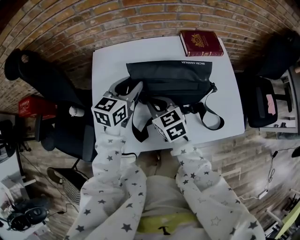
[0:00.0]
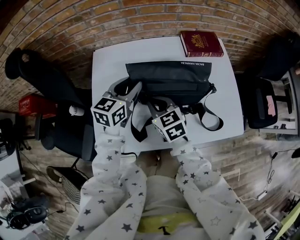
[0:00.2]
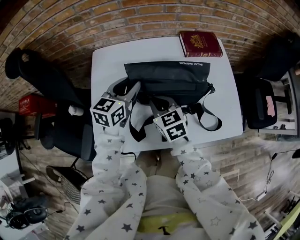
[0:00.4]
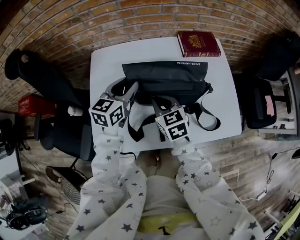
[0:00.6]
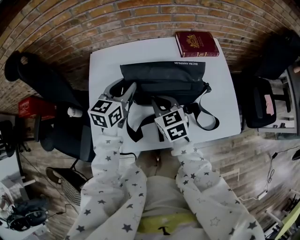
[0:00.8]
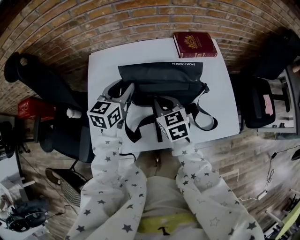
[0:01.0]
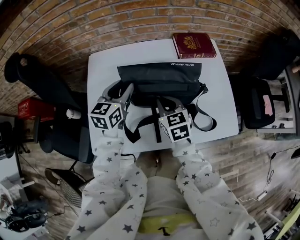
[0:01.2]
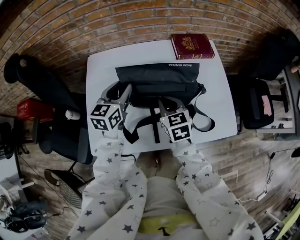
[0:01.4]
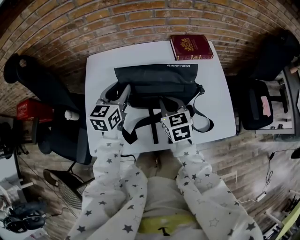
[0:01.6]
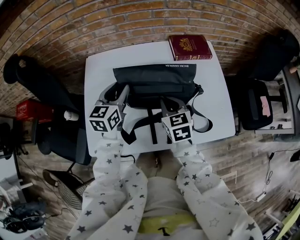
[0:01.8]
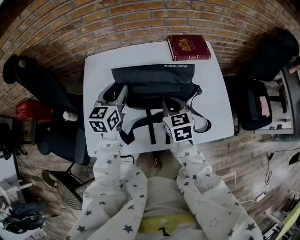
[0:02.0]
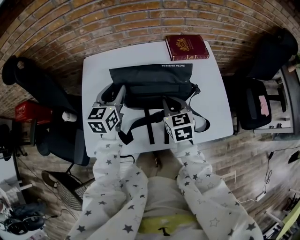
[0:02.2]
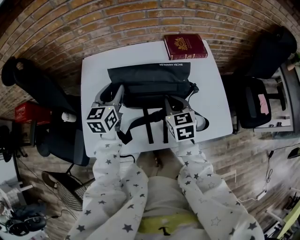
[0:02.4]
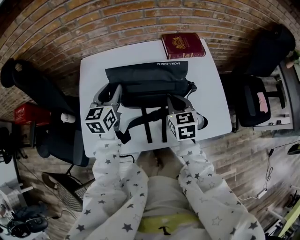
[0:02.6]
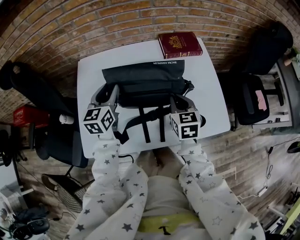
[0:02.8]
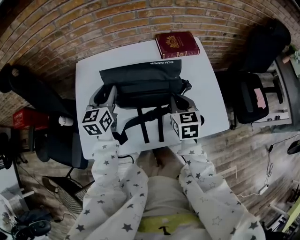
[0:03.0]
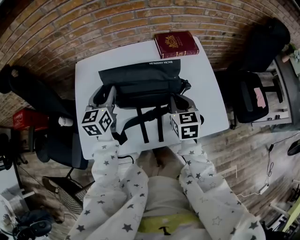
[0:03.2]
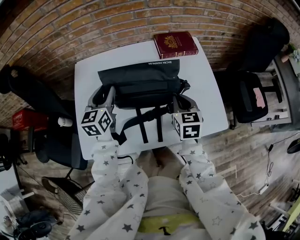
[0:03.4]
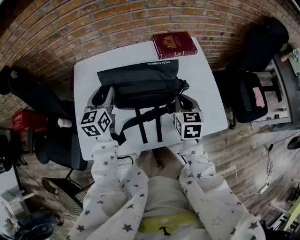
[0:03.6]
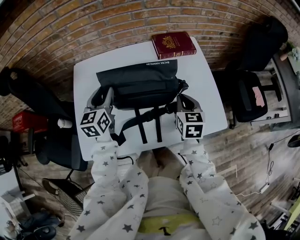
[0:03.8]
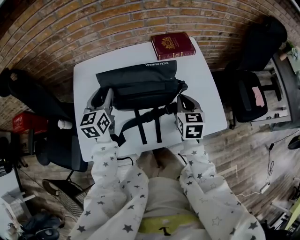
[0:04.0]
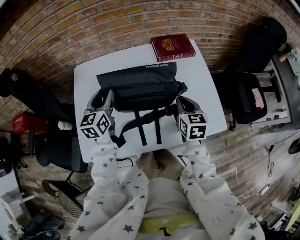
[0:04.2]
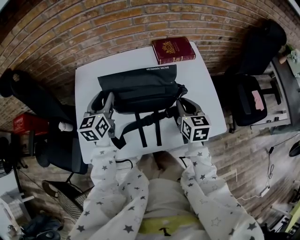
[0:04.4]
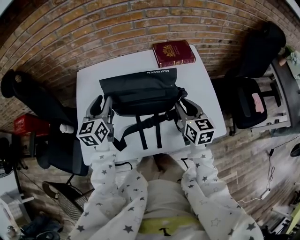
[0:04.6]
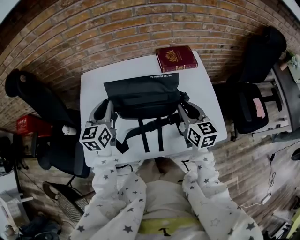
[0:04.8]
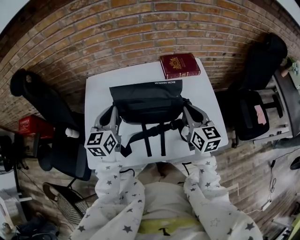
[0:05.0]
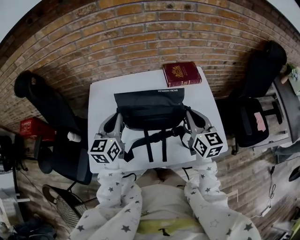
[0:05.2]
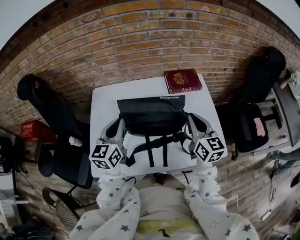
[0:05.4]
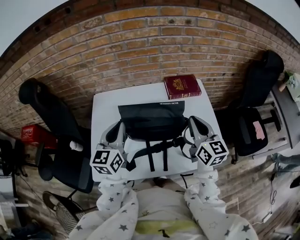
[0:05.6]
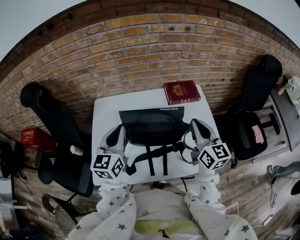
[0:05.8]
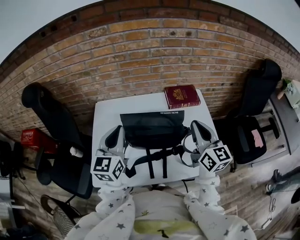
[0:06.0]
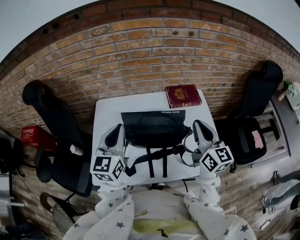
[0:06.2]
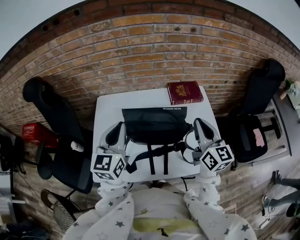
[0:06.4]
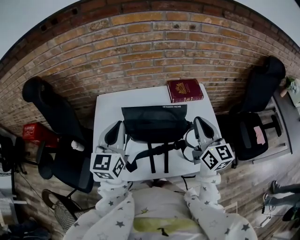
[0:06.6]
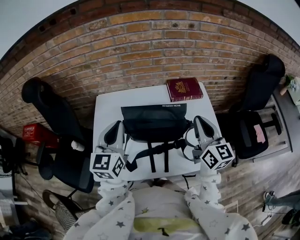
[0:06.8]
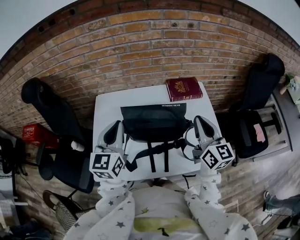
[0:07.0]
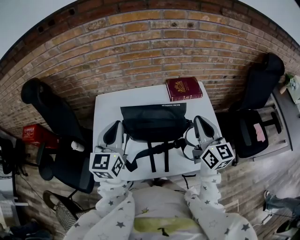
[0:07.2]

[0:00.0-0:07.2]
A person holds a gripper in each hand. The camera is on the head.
0:00.0 to 0:01.4: The right gripper goes some 10 cm to the right.
0:01.4 to 0:02.8: The right gripper heads to the right, covering some 10 cm.
0:02.8 to 0:04.4: The right gripper heads to the right, covering approximately 5 cm.
0:04.4 to 0:05.8: The left gripper goes roughly 15 cm upward and backward, and closes. Meanwhile the right gripper heads upward, covering some 15 cm, and turns by about 30 degrees.
0:05.8 to 0:07.2: The grippers move only a little.

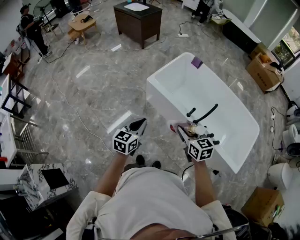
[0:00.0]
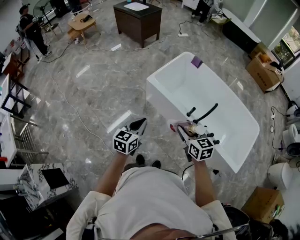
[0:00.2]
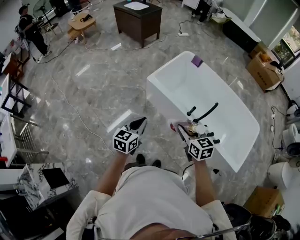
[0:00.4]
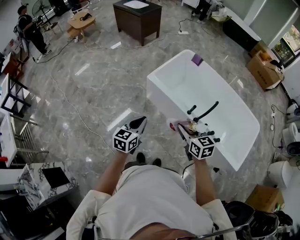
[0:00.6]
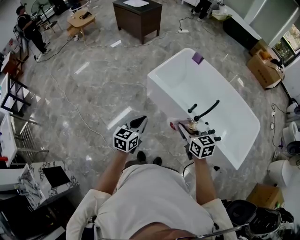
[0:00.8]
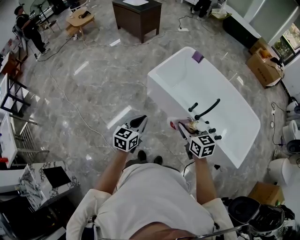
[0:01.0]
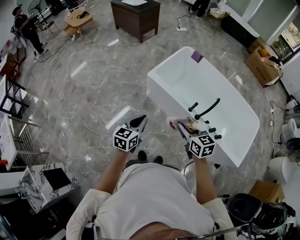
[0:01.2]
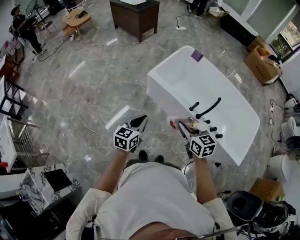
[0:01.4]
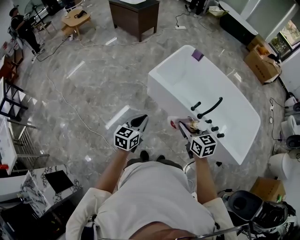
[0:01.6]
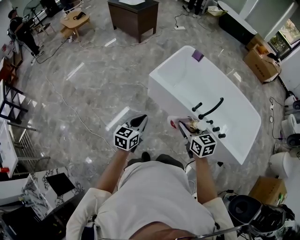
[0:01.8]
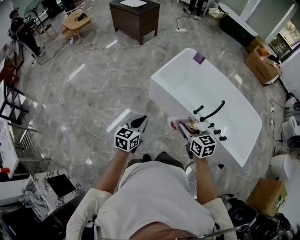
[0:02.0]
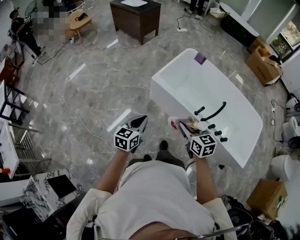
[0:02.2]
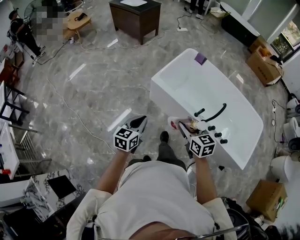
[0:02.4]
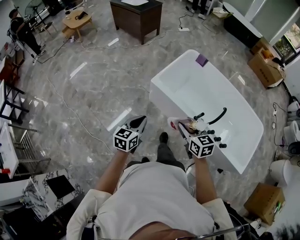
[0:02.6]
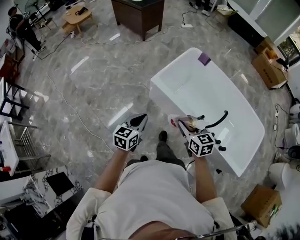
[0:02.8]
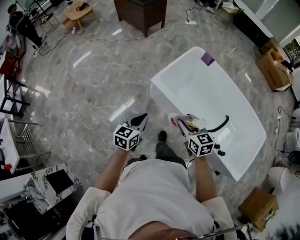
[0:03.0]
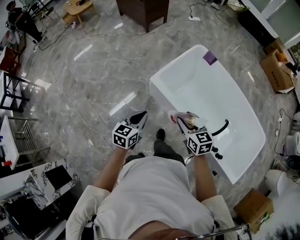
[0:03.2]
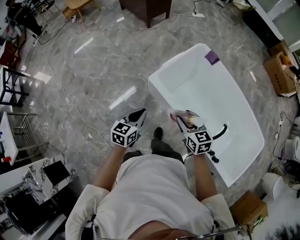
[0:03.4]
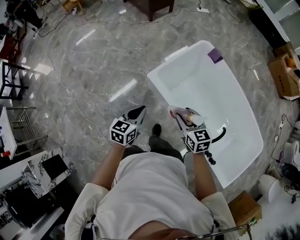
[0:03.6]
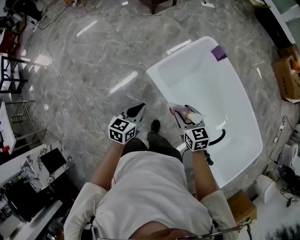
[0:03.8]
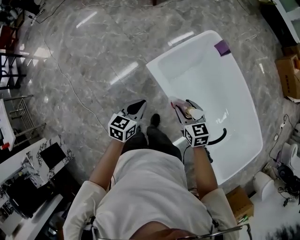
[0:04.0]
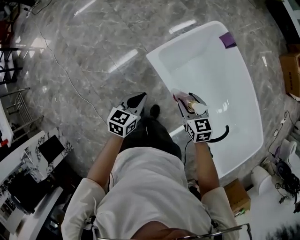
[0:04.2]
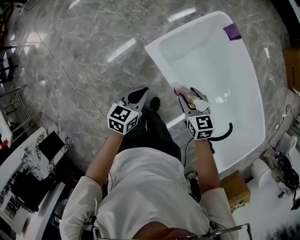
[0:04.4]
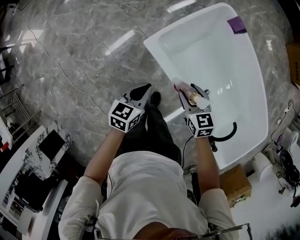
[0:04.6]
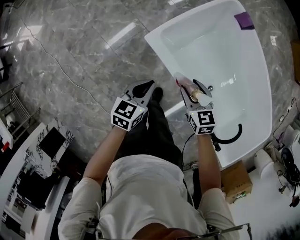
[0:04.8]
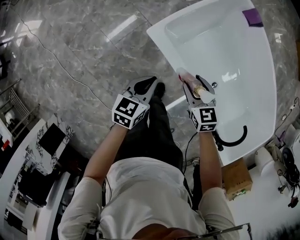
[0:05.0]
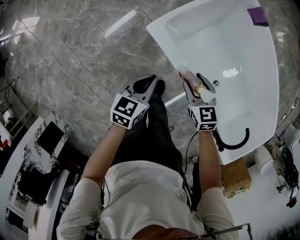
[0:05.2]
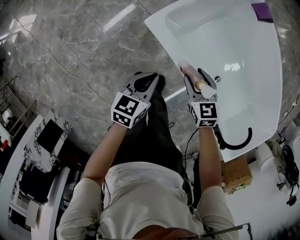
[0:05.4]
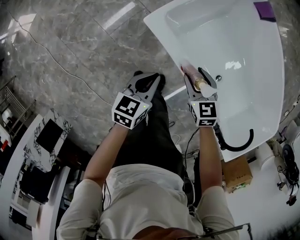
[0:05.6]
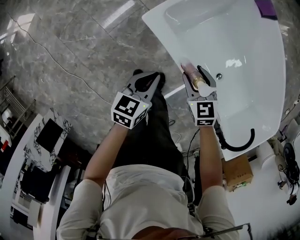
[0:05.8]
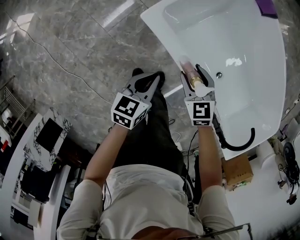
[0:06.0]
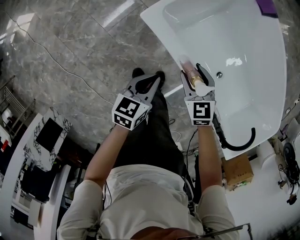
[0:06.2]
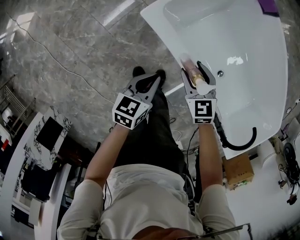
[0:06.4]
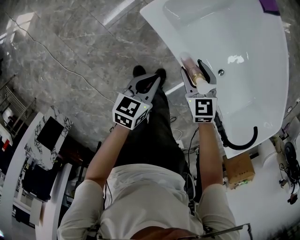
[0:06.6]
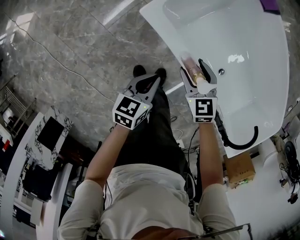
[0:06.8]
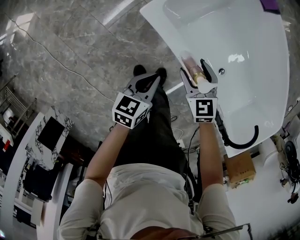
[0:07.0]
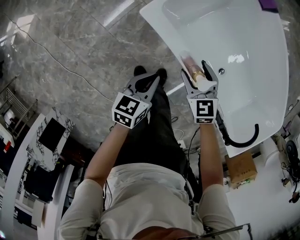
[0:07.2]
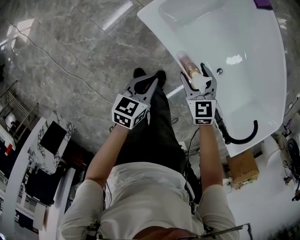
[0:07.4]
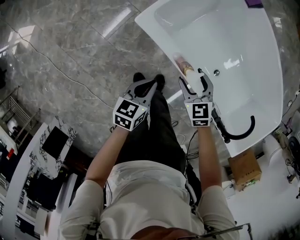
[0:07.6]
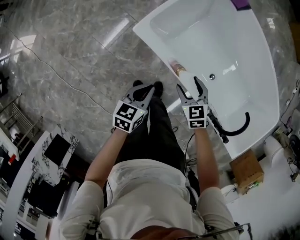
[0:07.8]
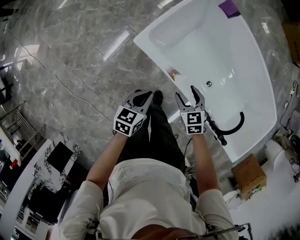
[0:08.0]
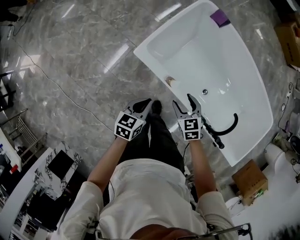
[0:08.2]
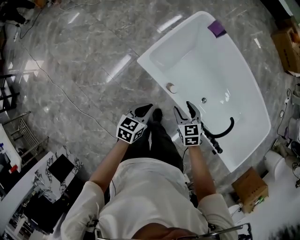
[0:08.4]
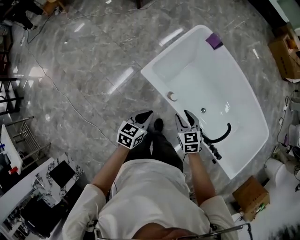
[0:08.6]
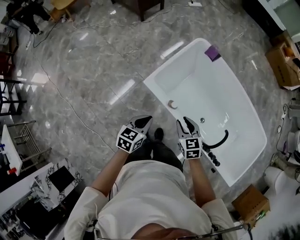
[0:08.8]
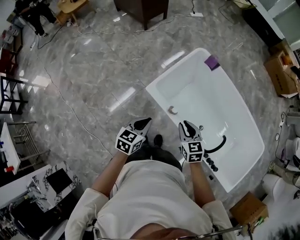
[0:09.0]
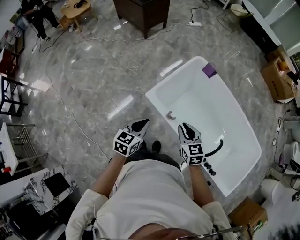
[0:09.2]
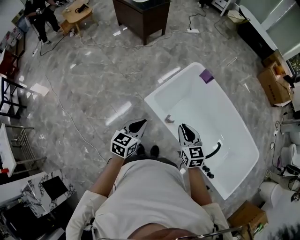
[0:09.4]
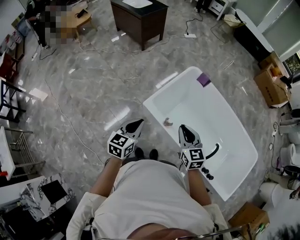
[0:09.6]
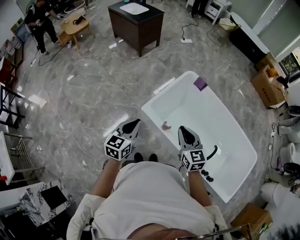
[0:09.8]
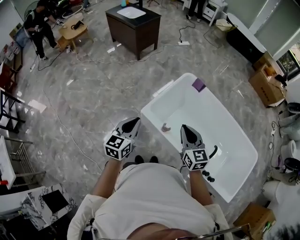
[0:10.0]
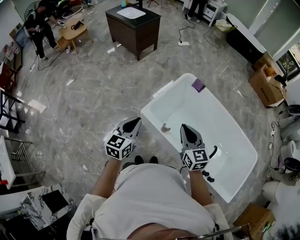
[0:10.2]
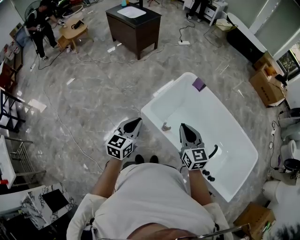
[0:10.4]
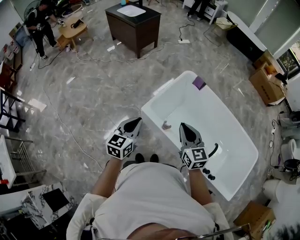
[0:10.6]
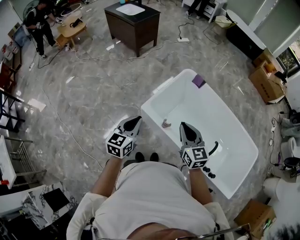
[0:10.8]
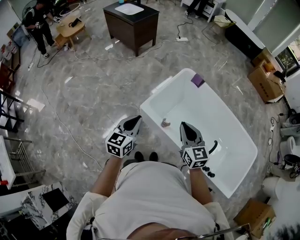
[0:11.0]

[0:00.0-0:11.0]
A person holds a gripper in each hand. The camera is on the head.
0:00.0 to 0:01.6: The two grippers go approximately 5 cm to the left.
0:01.6 to 0:03.2: Both grippers travel together forward, some 25 cm.
0:03.2 to 0:04.8: The grippers both shift downward and forward by roughly 35 cm.
0:04.8 to 0:06.2: Both grippers travel together downward, some 15 cm.
0:06.2 to 0:07.8: The right gripper moves backward, upward and to the right, roughly 10 cm, while the left gripper is displaced upward by roughly 5 cm.
0:07.8 to 0:09.4: The grippers both shift upward by some 40 cm. The right gripper turns by some 30 degrees, and closes, while the left gripper turns by approximately 20 degrees.
0:09.4 to 0:11.0: The two grippers go roughly 5 cm upward.

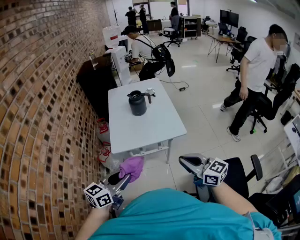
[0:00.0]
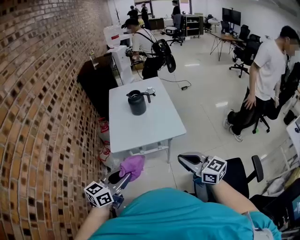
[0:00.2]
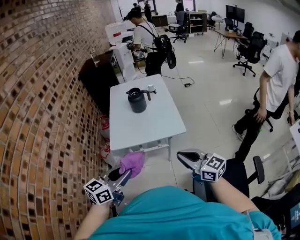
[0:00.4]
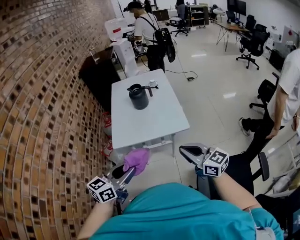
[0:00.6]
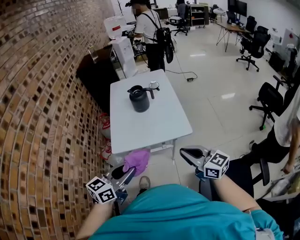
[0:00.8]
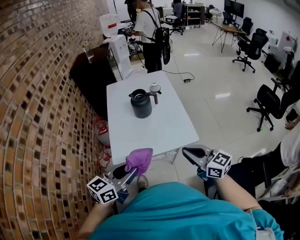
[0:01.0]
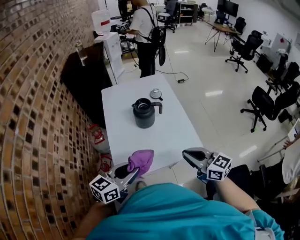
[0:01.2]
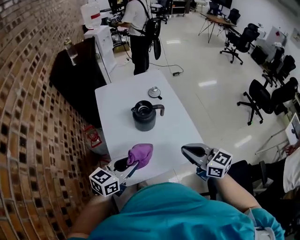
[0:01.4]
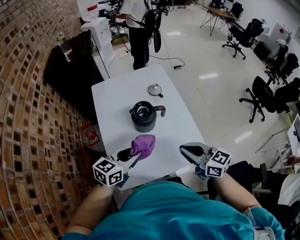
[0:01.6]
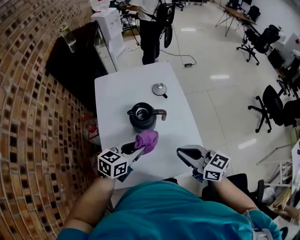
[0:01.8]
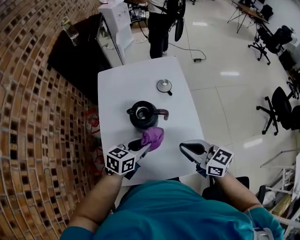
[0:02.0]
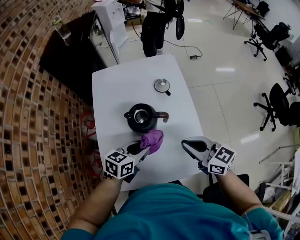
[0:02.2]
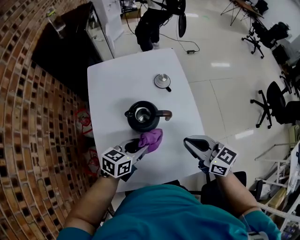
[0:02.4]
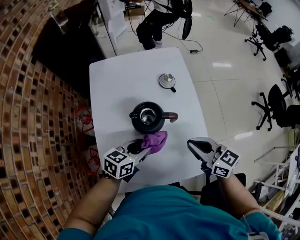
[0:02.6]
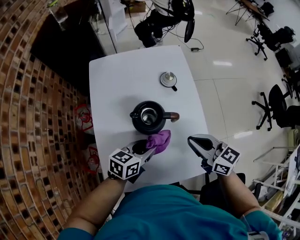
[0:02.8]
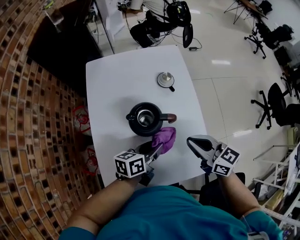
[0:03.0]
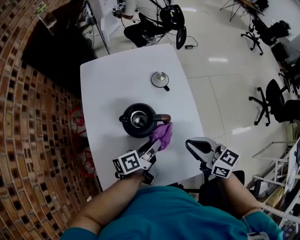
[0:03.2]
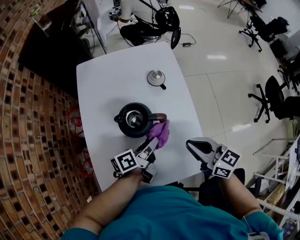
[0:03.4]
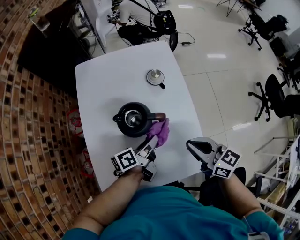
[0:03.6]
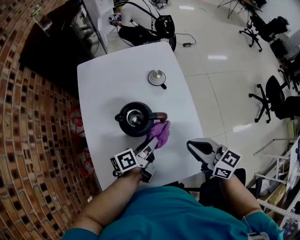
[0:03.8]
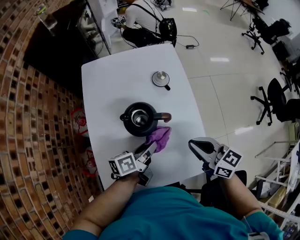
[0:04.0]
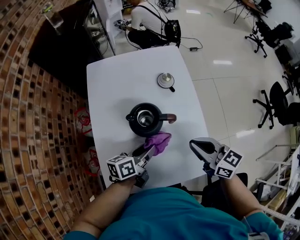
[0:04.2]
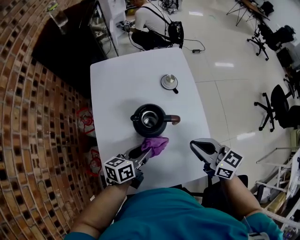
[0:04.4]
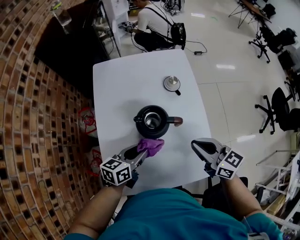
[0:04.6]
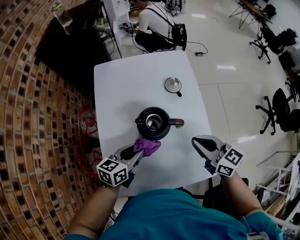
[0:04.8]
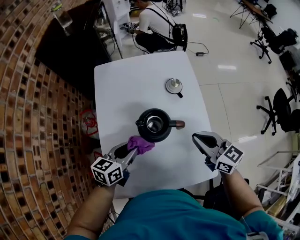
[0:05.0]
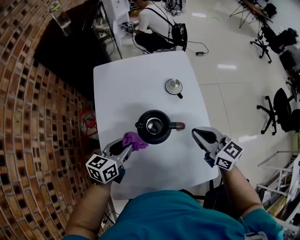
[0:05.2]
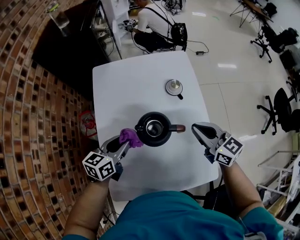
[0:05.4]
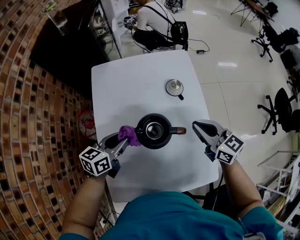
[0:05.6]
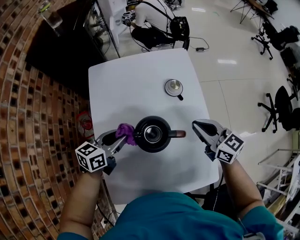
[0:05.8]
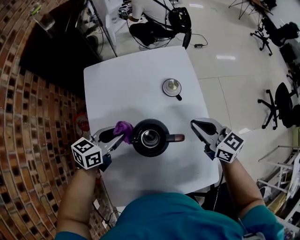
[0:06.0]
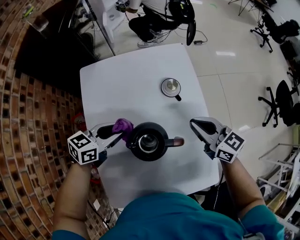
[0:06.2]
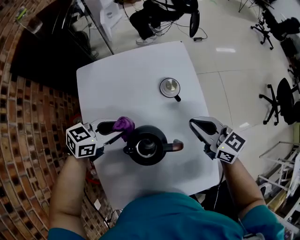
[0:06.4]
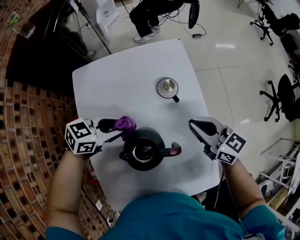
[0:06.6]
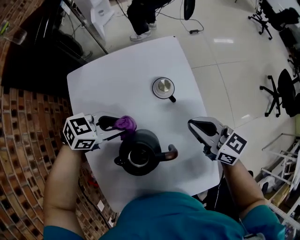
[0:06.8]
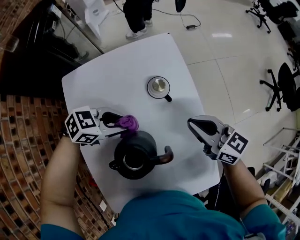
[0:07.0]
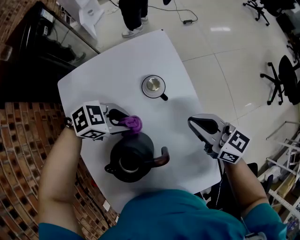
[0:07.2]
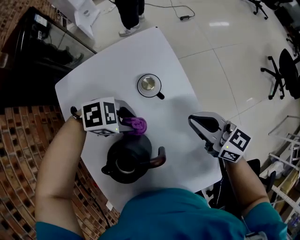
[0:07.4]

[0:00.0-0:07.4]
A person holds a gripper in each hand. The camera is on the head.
0:00.0 to 0:01.4: The grippers both shift forward by approximately 35 cm.
0:01.4 to 0:03.0: The left gripper moves forward, downward and to the right, roughly 25 cm, and changes its angle by about 40 degrees. The right gripper is displaced forward and downward by roughly 20 cm.
0:03.0 to 0:04.4: The left gripper is displaced to the left by some 5 cm.
0:04.4 to 0:06.0: The left gripper goes about 15 cm forward and to the left, and changes its angle by roughly 20 degrees; the right gripper is displaced forward by roughly 15 cm.
0:06.0 to 0:07.4: The left gripper shifts by some 15 cm, and swivels about 80 degrees. The right gripper moves about 10 cm.
